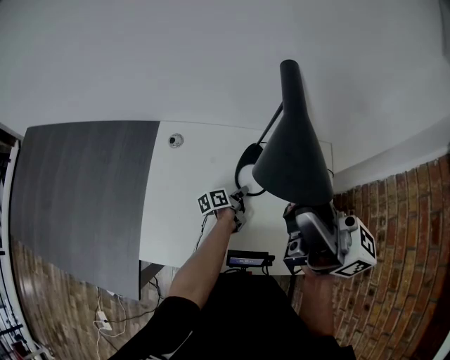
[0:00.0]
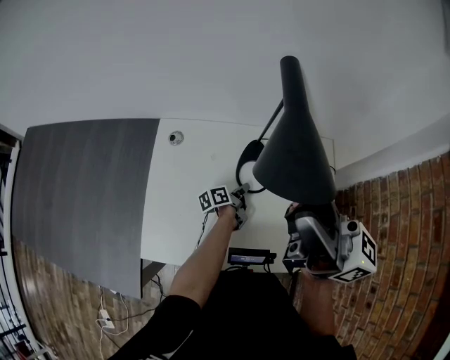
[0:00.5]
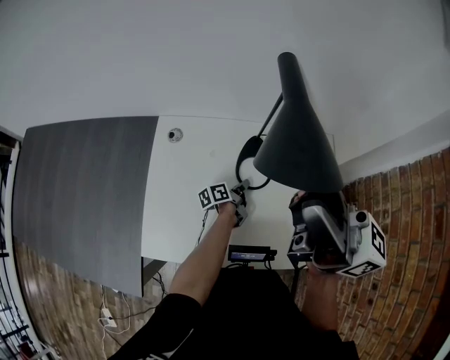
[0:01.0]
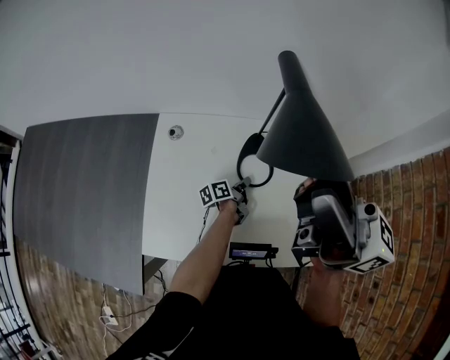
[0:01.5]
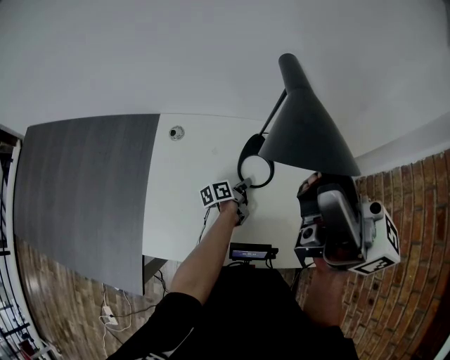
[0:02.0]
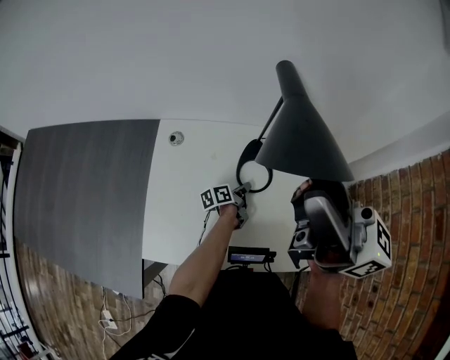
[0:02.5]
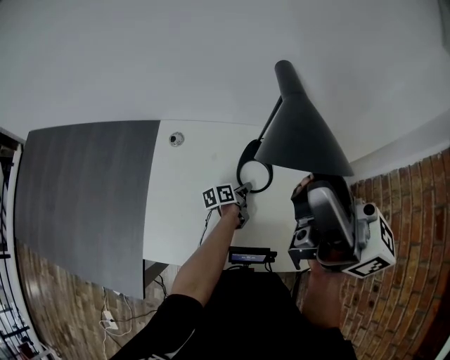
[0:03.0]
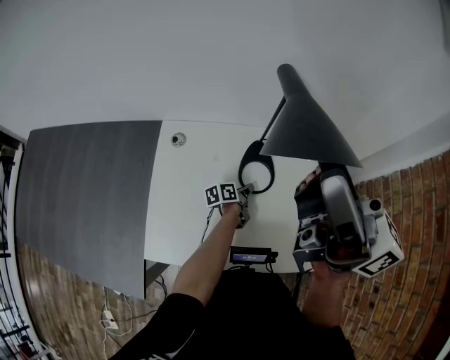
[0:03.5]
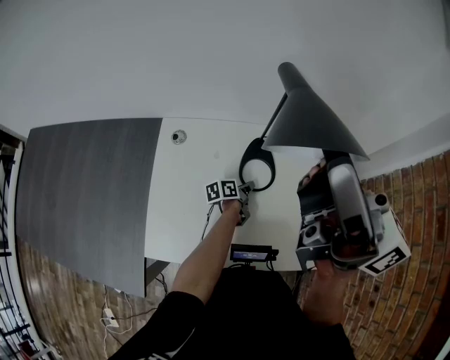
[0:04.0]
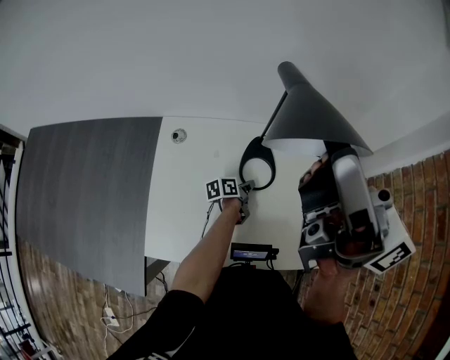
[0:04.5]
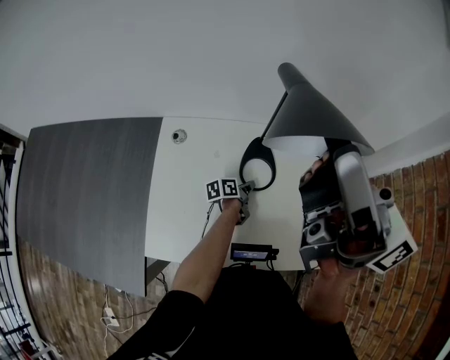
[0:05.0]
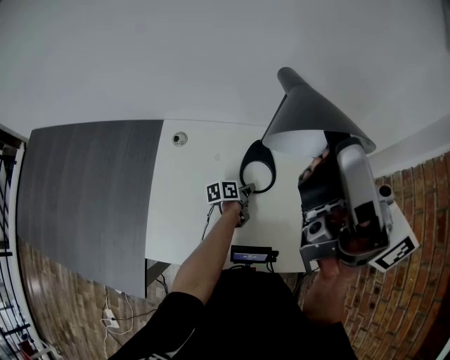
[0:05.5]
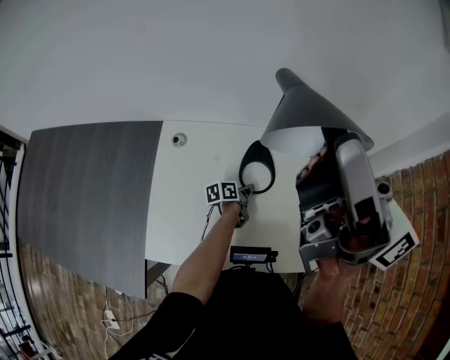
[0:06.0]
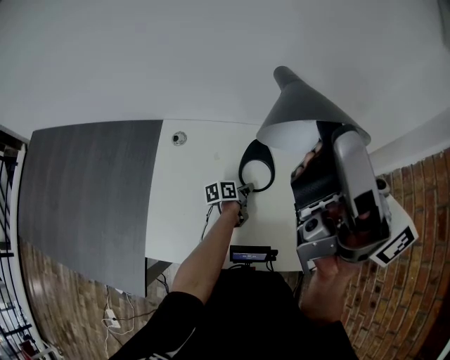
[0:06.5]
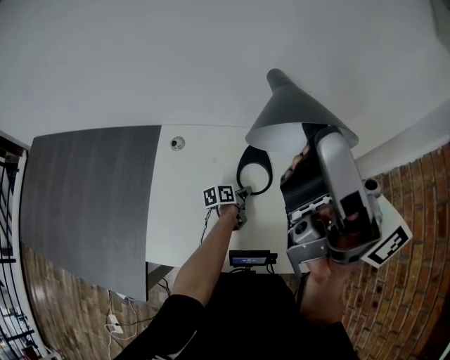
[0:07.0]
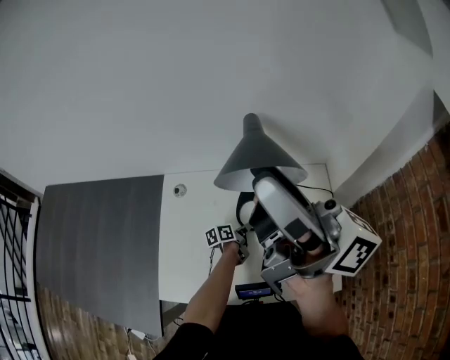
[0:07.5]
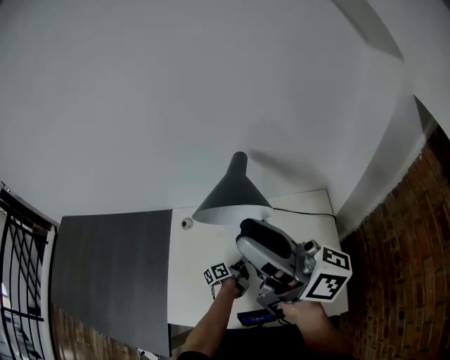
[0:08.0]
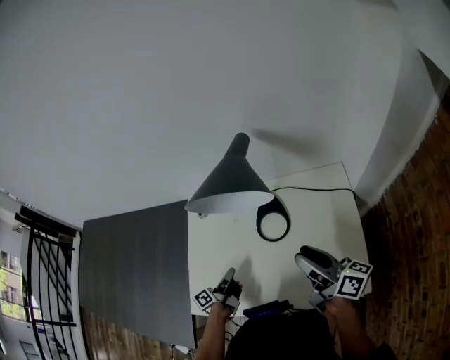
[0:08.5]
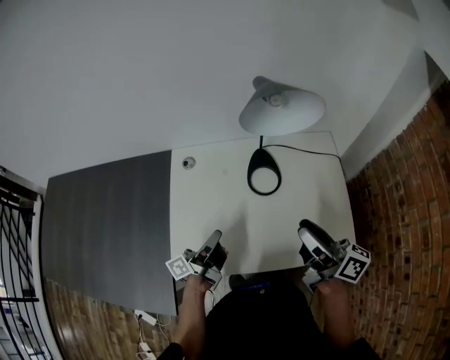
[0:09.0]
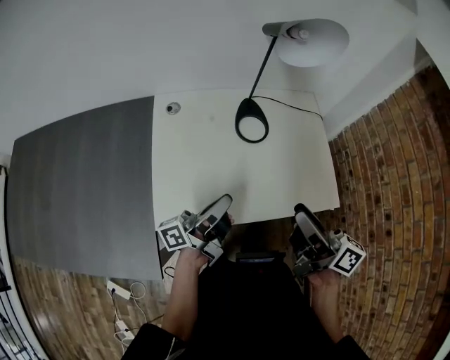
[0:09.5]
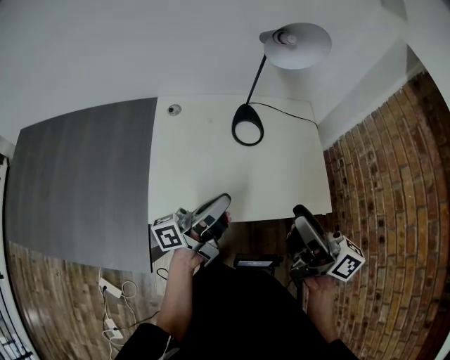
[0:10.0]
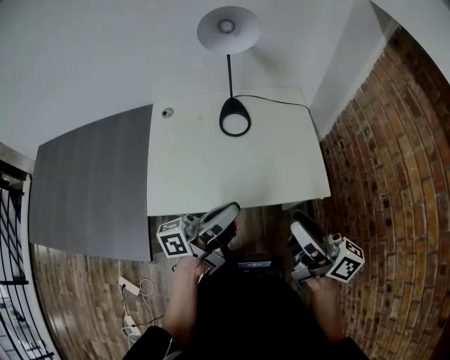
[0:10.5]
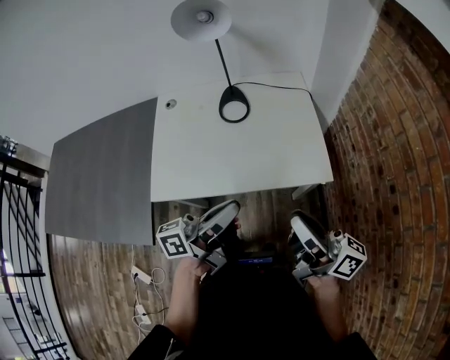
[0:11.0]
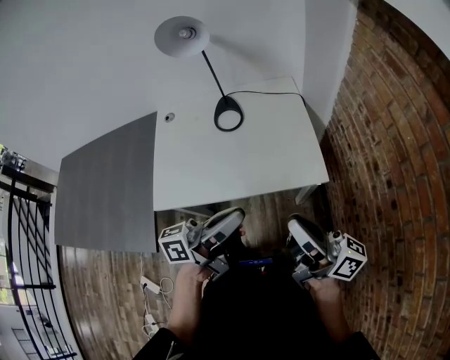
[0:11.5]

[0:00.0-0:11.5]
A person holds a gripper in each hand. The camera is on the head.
0:00.0 to 0:02.0: The right gripper shifts some 5 cm upward.
0:07.5 to 0:09.5: The right gripper goes about 25 cm downward, and angles its fingers downward, by roughly 30 degrees.
0:09.5 to 0:11.5: The right gripper shifts by roughly 20 cm, changes its angle by roughly 20 degrees, and closes.

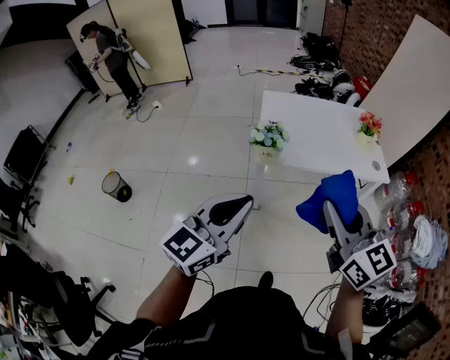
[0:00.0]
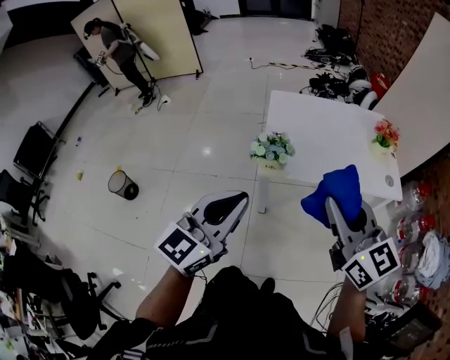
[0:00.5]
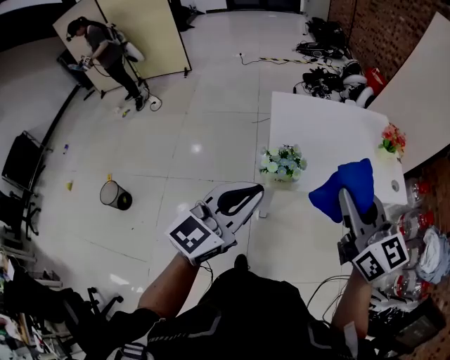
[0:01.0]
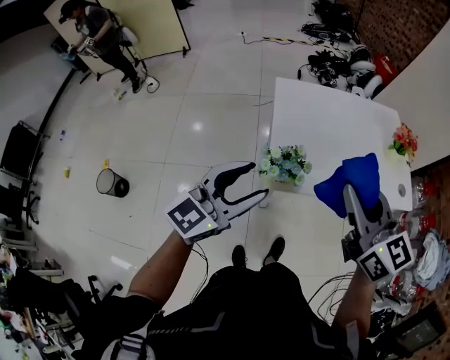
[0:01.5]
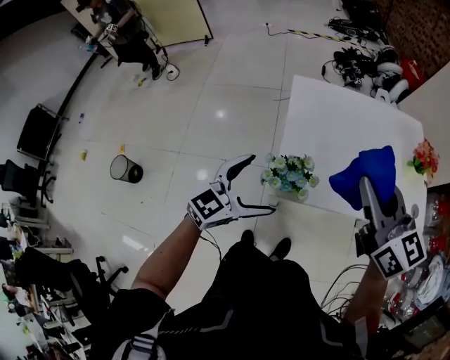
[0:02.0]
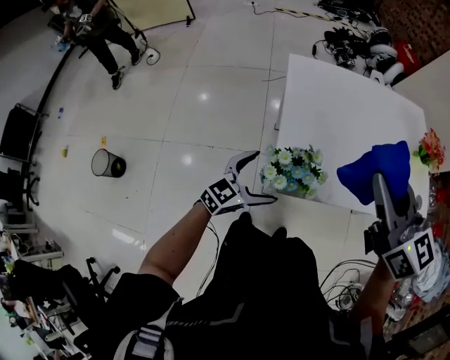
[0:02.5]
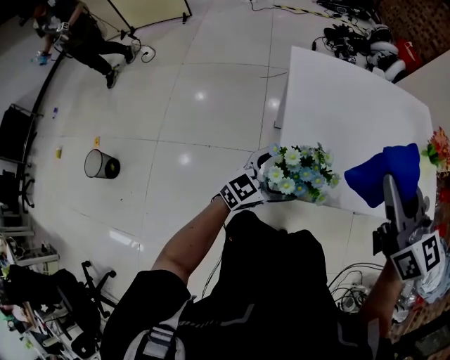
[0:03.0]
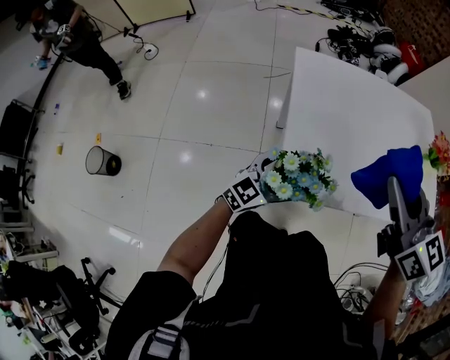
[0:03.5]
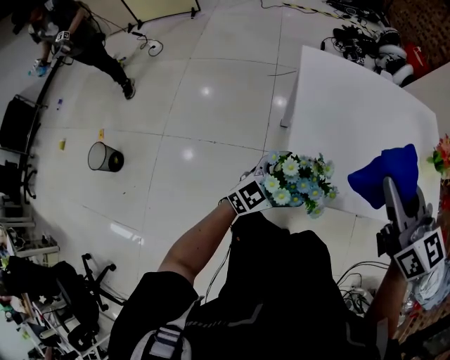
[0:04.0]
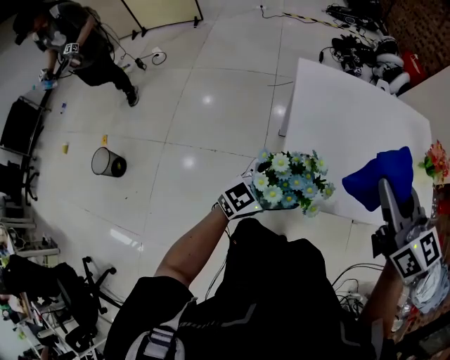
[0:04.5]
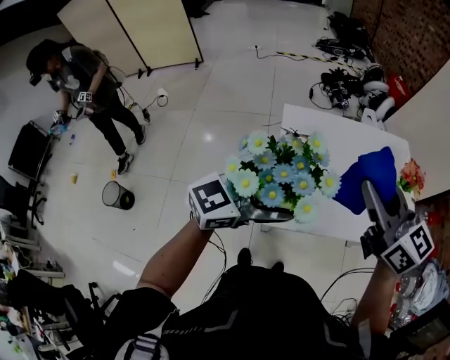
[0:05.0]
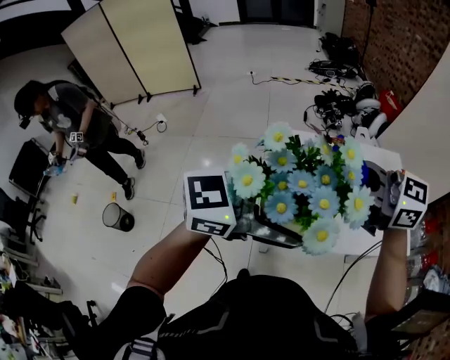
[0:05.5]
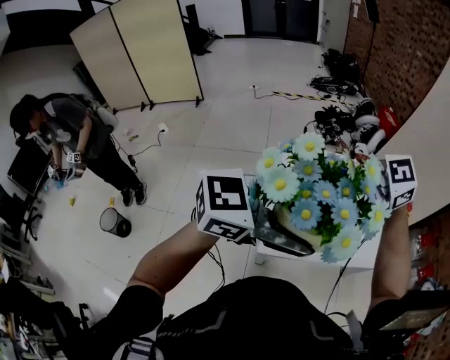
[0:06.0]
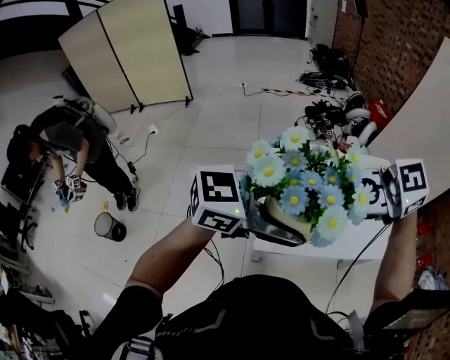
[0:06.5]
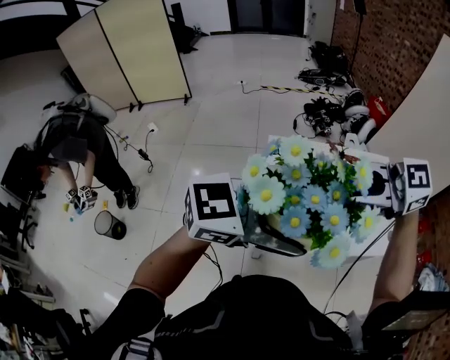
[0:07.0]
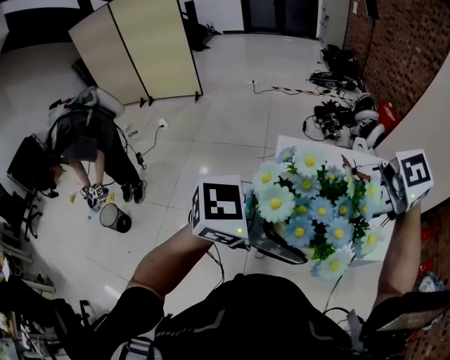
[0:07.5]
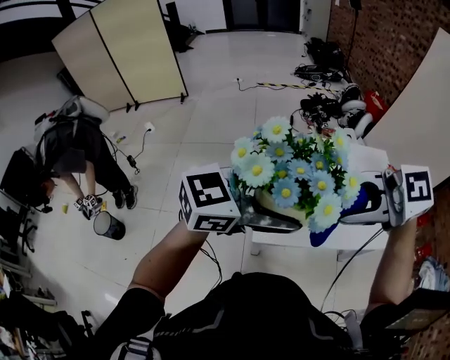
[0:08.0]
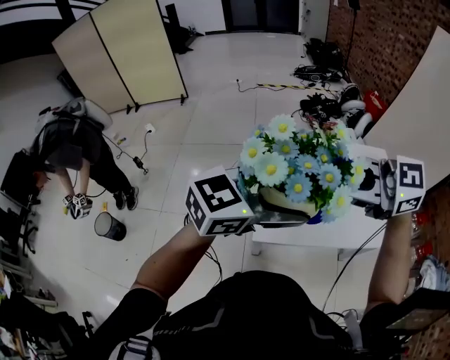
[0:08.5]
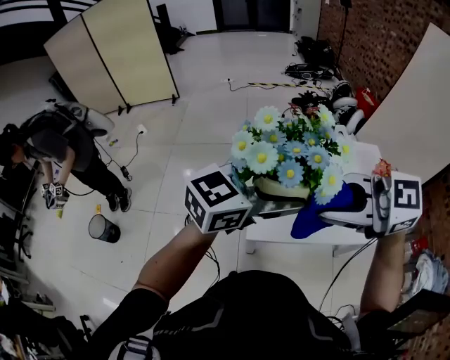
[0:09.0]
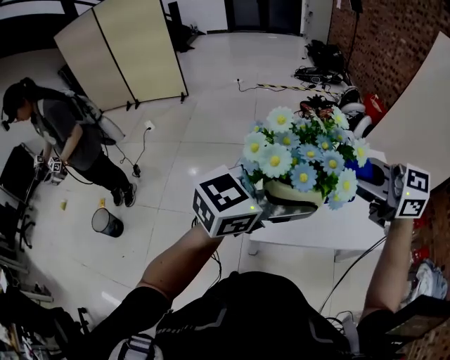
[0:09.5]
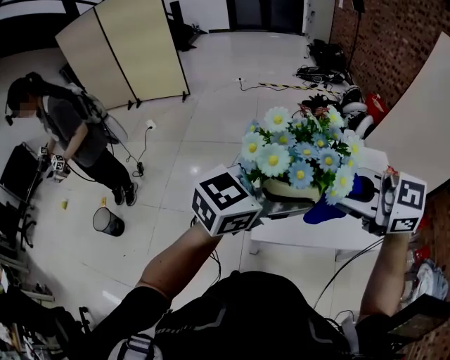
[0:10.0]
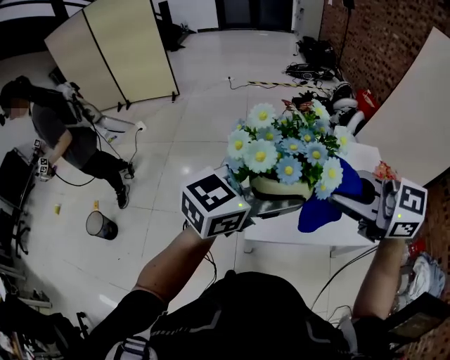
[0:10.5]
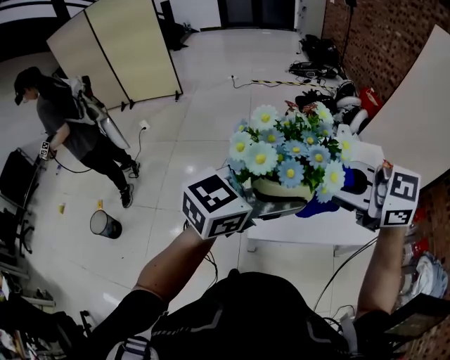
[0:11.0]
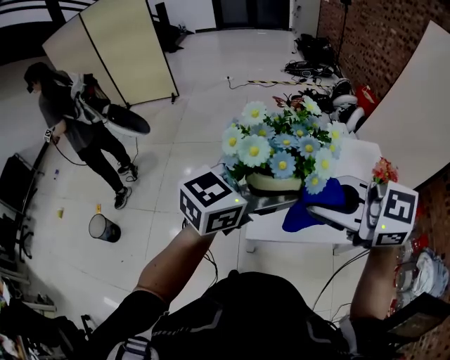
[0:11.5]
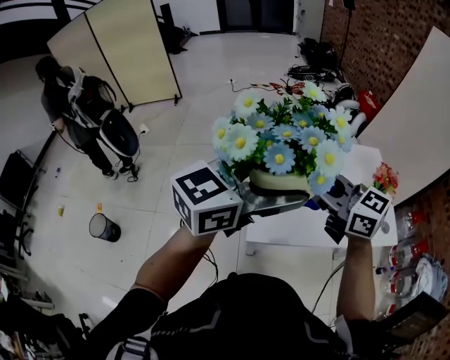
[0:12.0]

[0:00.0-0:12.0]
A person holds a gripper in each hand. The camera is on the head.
0:00.0 to 0:02.0: The left gripper travels forward and downward by roughly 40 cm, and opens its fingers, while the right gripper is displaced forward by approximately 40 cm.
0:02.0 to 0:04.0: The left gripper goes roughly 20 cm downward; the right gripper shifts some 15 cm downward.
0:04.0 to 0:06.0: The right gripper shifts approximately 20 cm upward, and turns by about 70 degrees. The left gripper shifts about 50 cm upward, and rotates roughly 20 degrees.
0:06.0 to 0:08.0: The right gripper moves about 10 cm.
0:08.0 to 0:10.0: The right gripper turns by some 20 degrees.
0:10.0 to 0:12.0: The right gripper heads downward, covering approximately 10 cm, and swivels roughly 30 degrees.

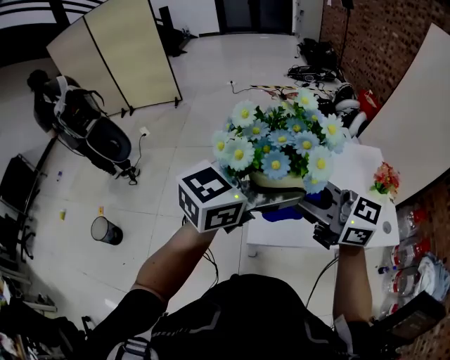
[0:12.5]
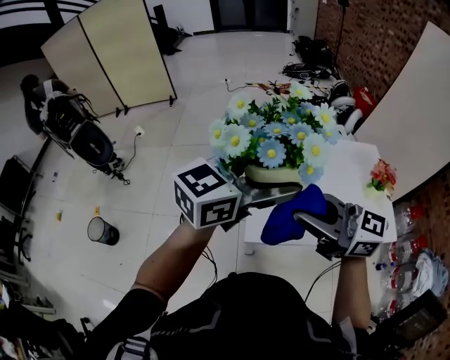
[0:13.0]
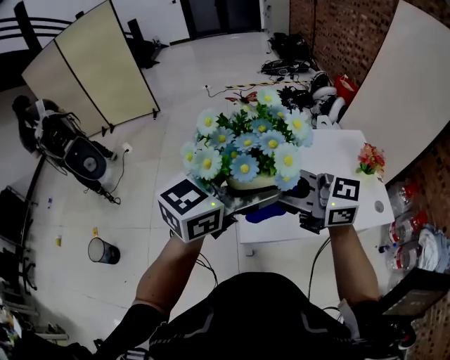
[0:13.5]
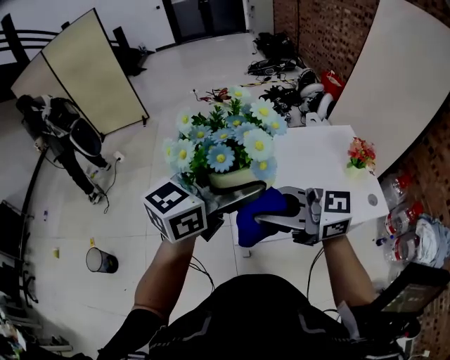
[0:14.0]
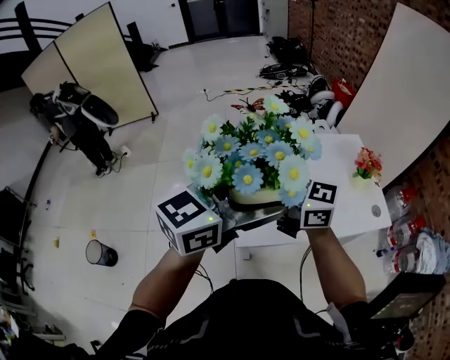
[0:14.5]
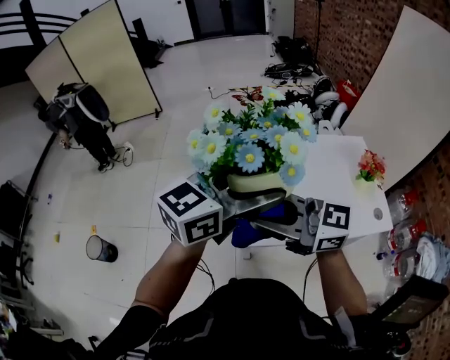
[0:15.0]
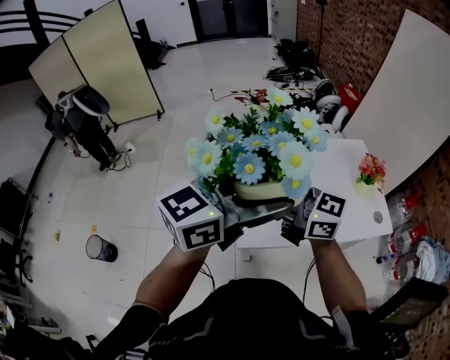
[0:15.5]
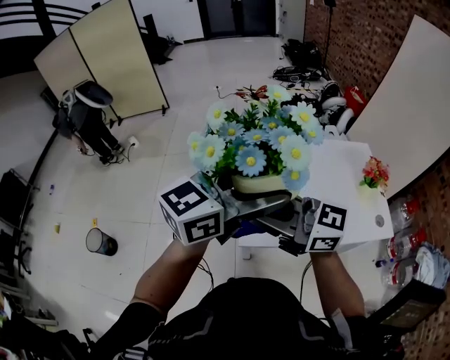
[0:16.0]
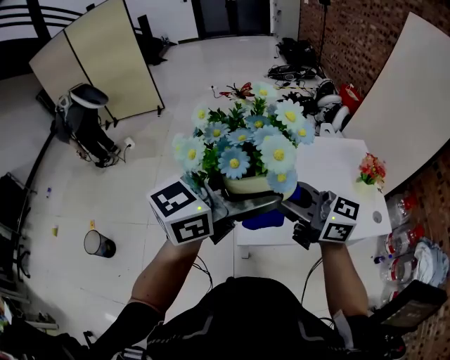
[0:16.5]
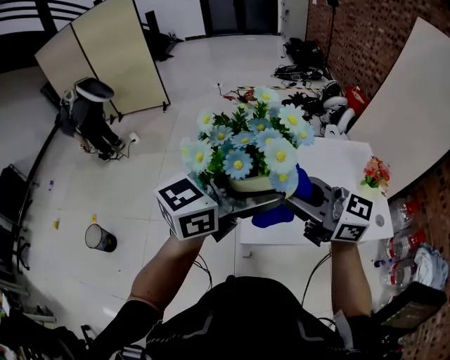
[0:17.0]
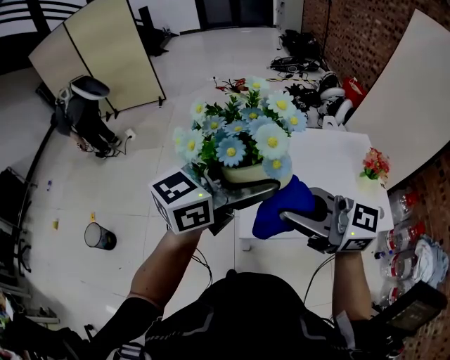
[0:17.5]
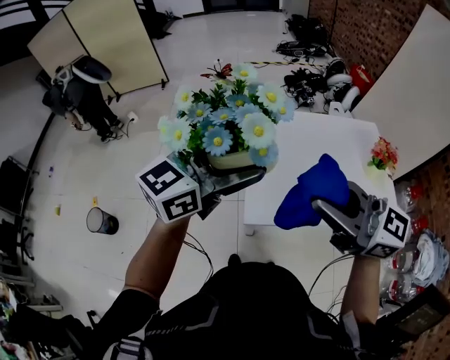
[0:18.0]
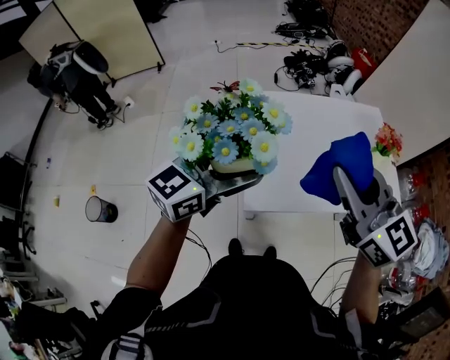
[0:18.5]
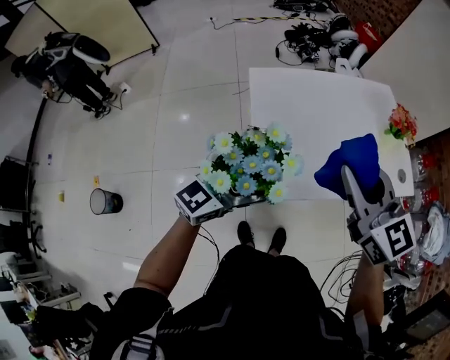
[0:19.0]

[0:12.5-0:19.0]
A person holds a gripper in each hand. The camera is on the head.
0:12.5 to 0:14.5: The right gripper ends up some 5 cm from where it was.
0:14.5 to 0:17.0: The right gripper shifts by roughly 10 cm.
0:17.0 to 0:19.0: The left gripper is displaced downward by roughly 20 cm. Meanwhile the right gripper shifts by approximately 10 cm, and changes its angle by some 50 degrees.
